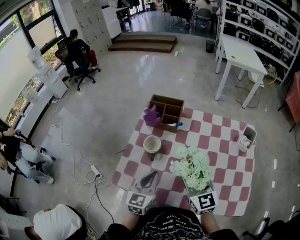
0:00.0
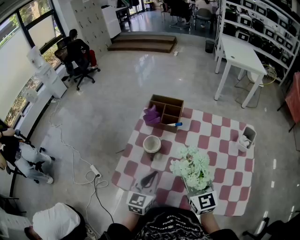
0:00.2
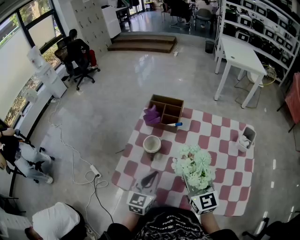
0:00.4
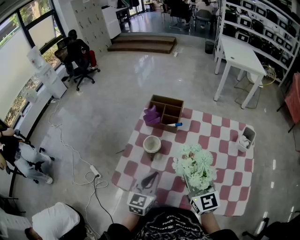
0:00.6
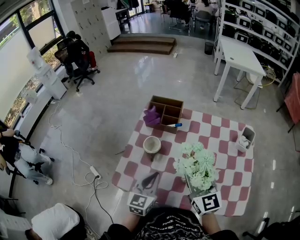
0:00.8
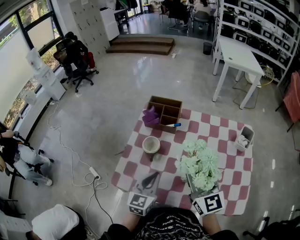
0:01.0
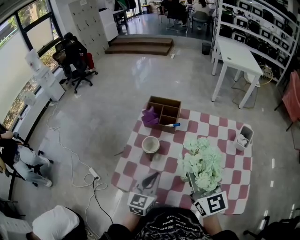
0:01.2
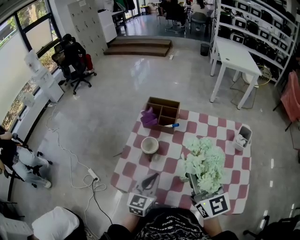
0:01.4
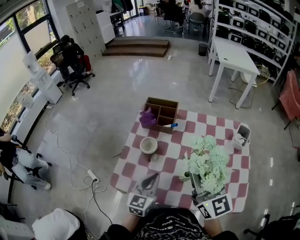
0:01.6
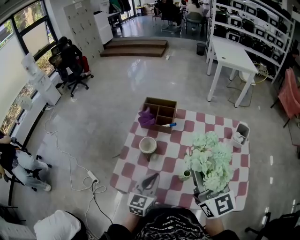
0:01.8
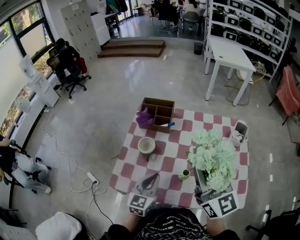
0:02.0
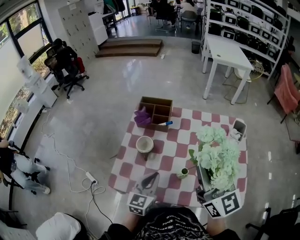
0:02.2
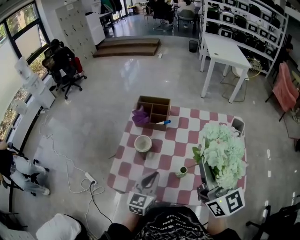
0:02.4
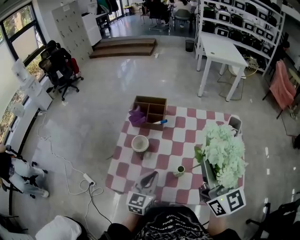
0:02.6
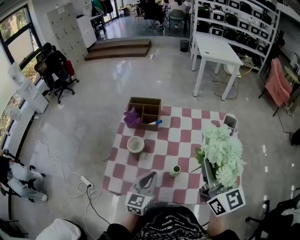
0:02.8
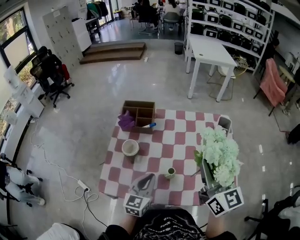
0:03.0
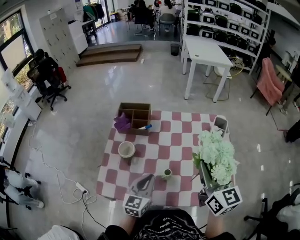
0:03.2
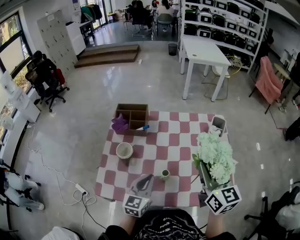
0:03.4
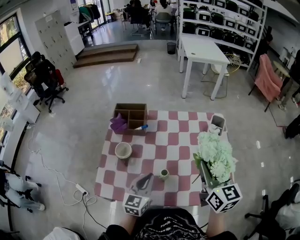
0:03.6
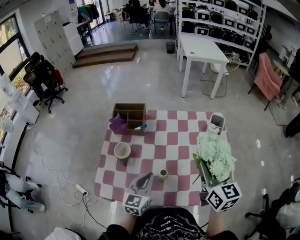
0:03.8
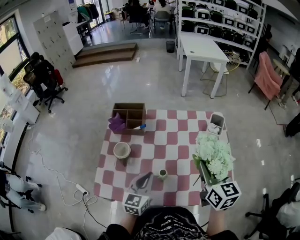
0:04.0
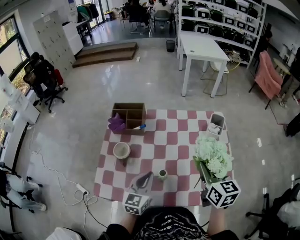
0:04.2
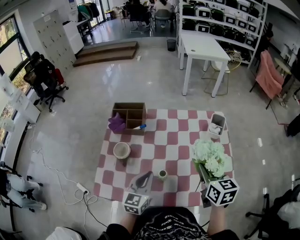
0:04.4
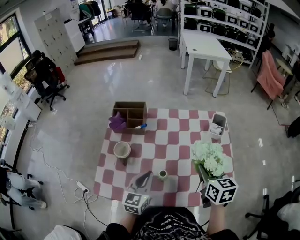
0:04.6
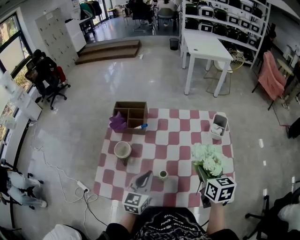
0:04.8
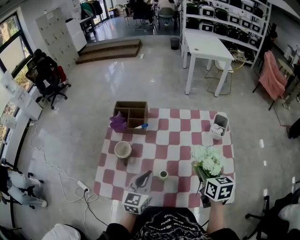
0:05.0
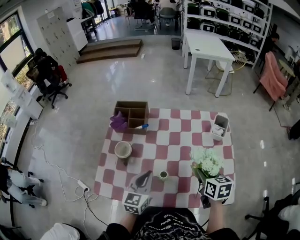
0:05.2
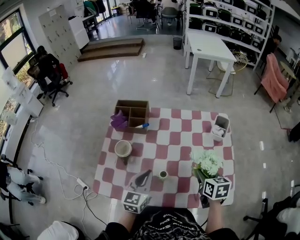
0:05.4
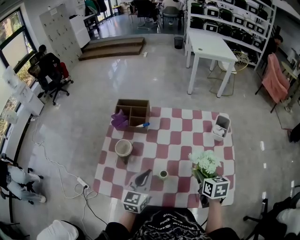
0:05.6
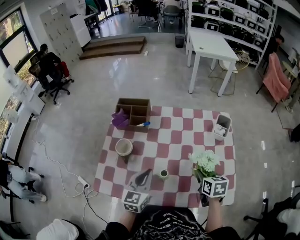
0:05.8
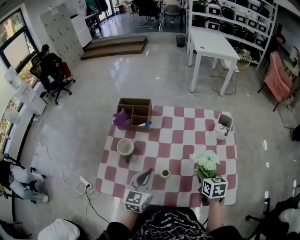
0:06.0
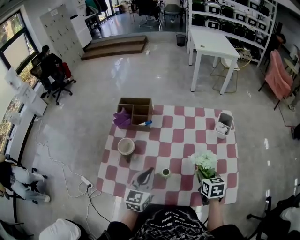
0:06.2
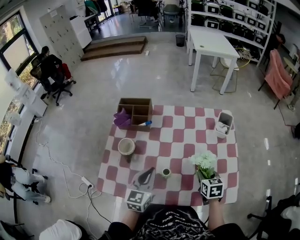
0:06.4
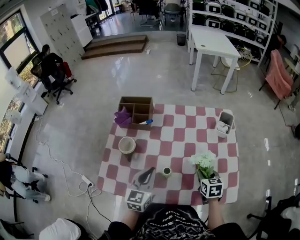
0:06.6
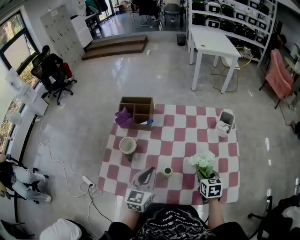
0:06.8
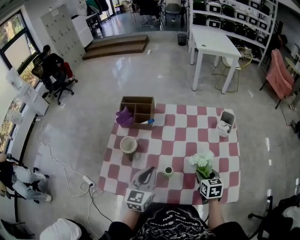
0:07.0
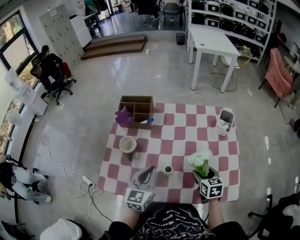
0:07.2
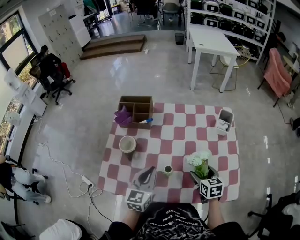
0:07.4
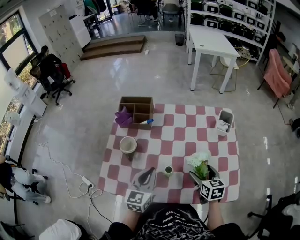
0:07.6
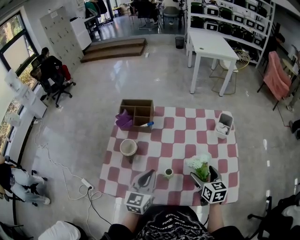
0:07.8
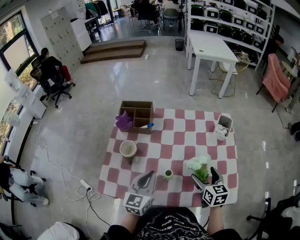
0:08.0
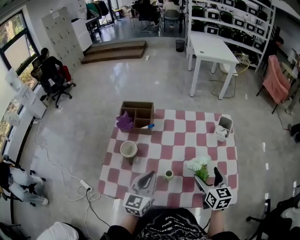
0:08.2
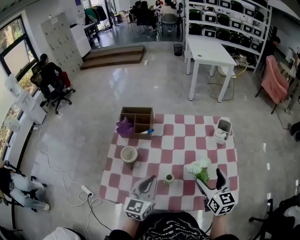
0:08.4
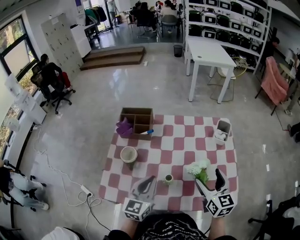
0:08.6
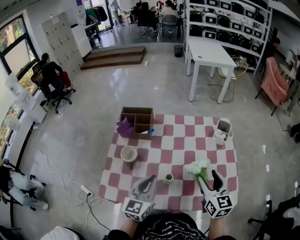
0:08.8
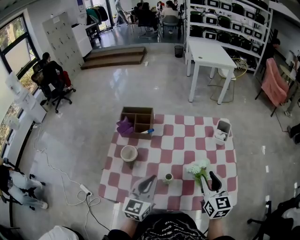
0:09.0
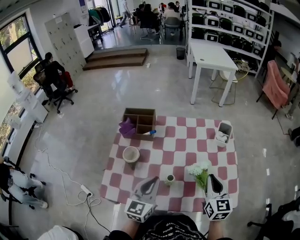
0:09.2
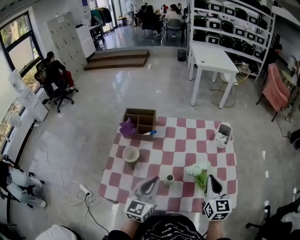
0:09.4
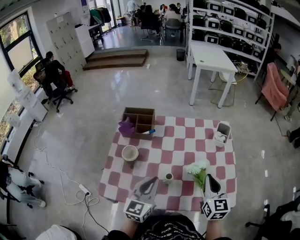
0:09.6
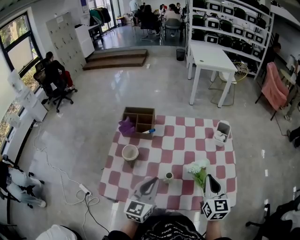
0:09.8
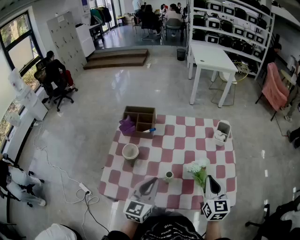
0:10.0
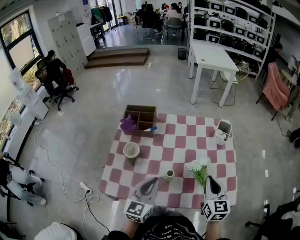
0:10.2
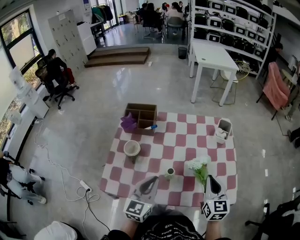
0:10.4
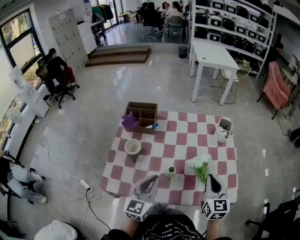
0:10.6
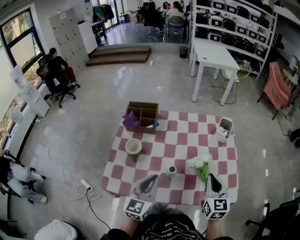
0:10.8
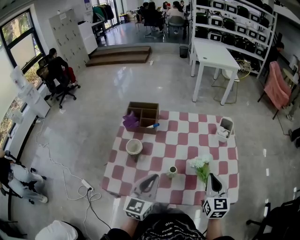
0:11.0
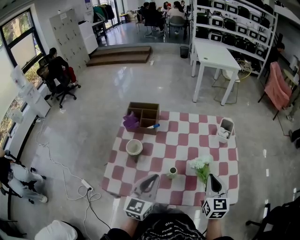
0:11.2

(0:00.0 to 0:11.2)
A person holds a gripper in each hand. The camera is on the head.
0:00.0 - 0:01.6: The right gripper shifts roughly 15 cm upward.
0:01.6 - 0:03.2: The left gripper travels to the right by approximately 5 cm. Meanwhile the right gripper heads to the right, covering some 10 cm, and swivels approximately 20 degrees.
0:03.2 - 0:04.8: The right gripper goes roughly 15 cm downward, and rotates some 30 degrees.
0:04.8 - 0:06.4: The right gripper heads downward, covering about 10 cm.
0:06.4 - 0:08.0: The right gripper heads upward, covering some 5 cm, and opens its fingers.
0:08.0 - 0:09.6: The right gripper travels upward by roughly 10 cm, and closes.
0:09.6 - 0:11.2: There are only small adjustments of the grippers.

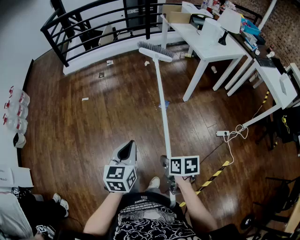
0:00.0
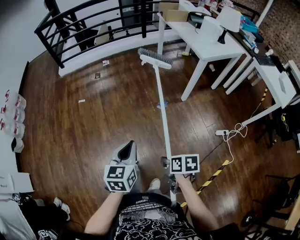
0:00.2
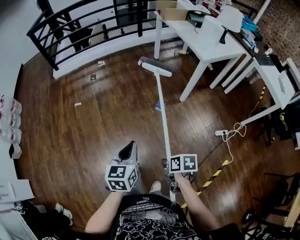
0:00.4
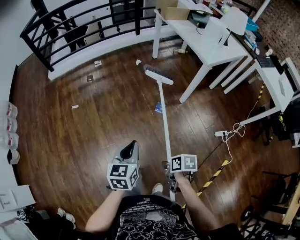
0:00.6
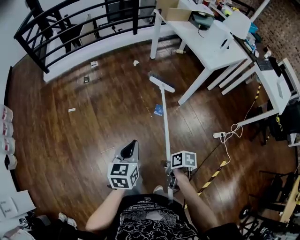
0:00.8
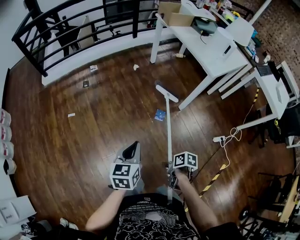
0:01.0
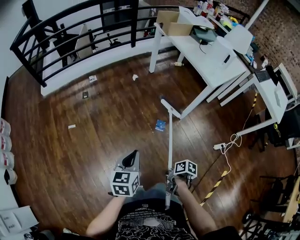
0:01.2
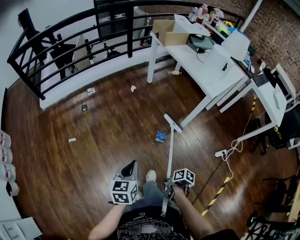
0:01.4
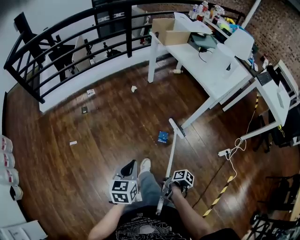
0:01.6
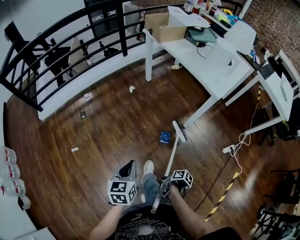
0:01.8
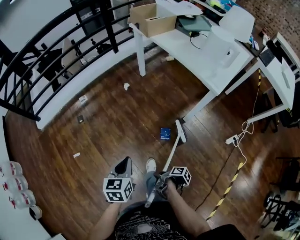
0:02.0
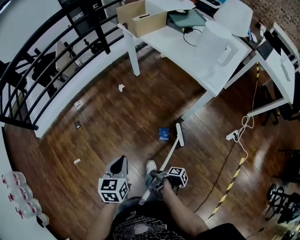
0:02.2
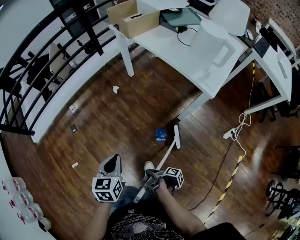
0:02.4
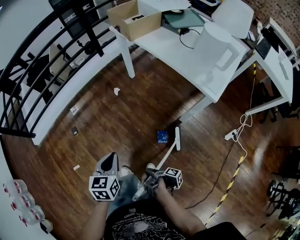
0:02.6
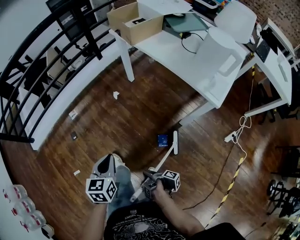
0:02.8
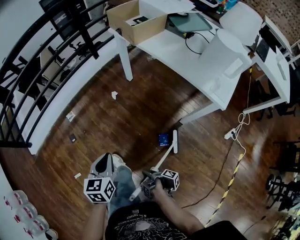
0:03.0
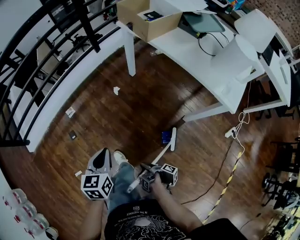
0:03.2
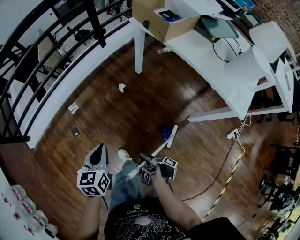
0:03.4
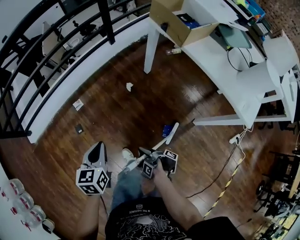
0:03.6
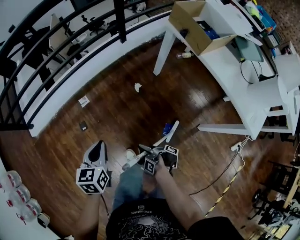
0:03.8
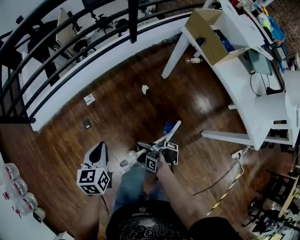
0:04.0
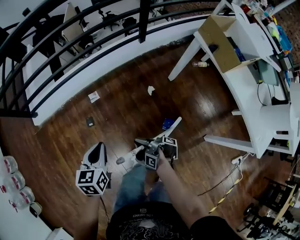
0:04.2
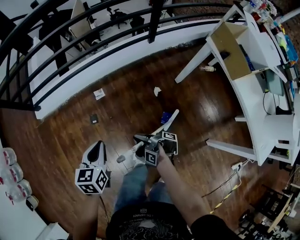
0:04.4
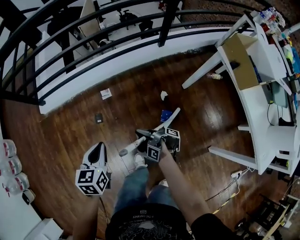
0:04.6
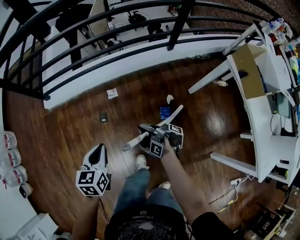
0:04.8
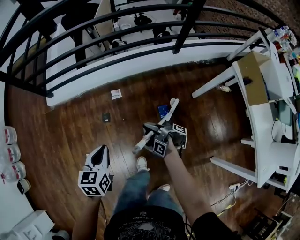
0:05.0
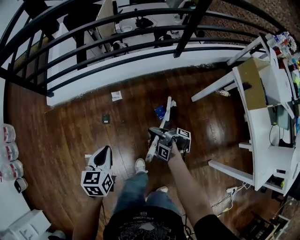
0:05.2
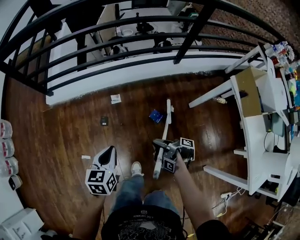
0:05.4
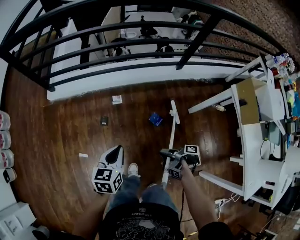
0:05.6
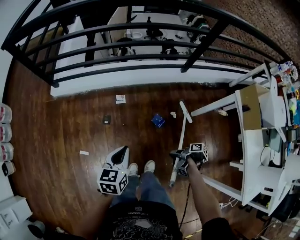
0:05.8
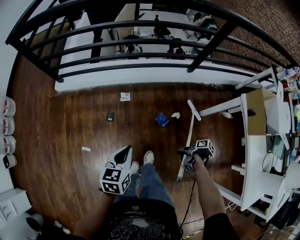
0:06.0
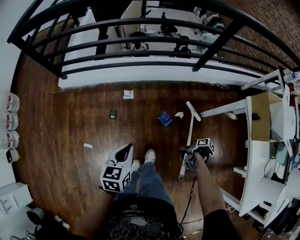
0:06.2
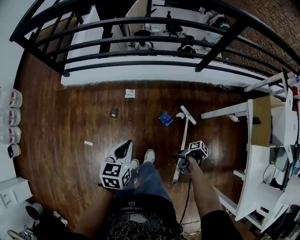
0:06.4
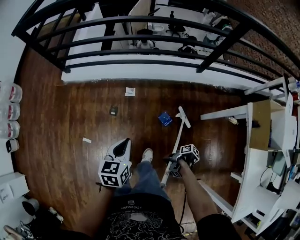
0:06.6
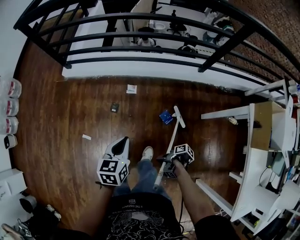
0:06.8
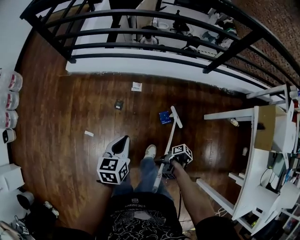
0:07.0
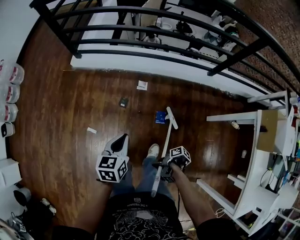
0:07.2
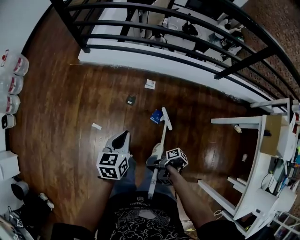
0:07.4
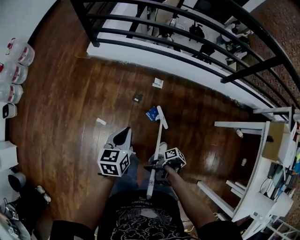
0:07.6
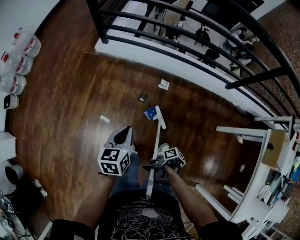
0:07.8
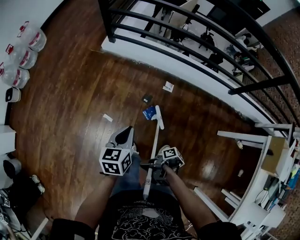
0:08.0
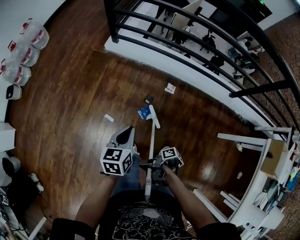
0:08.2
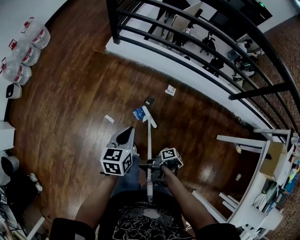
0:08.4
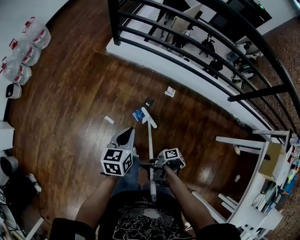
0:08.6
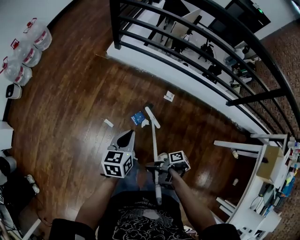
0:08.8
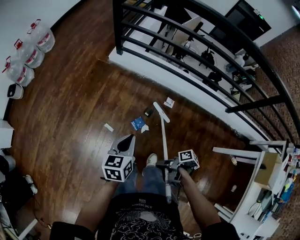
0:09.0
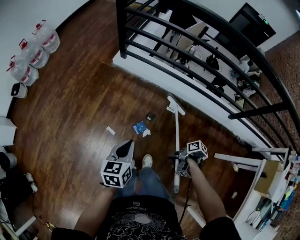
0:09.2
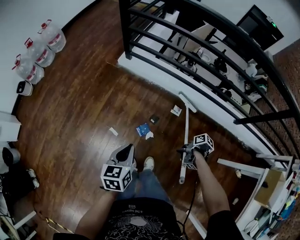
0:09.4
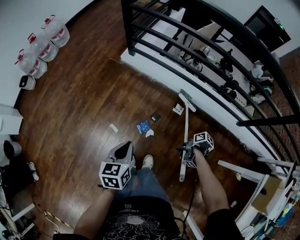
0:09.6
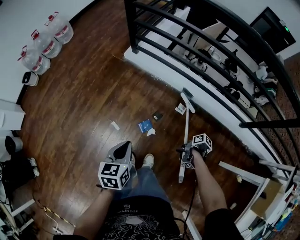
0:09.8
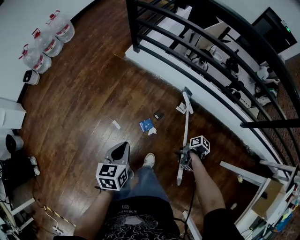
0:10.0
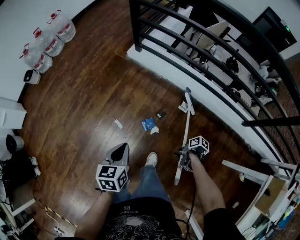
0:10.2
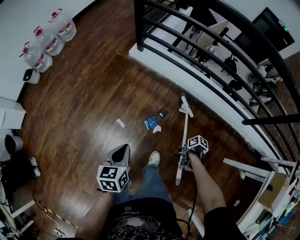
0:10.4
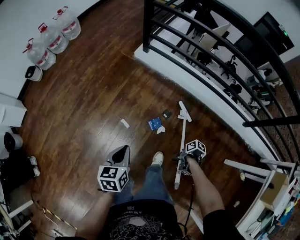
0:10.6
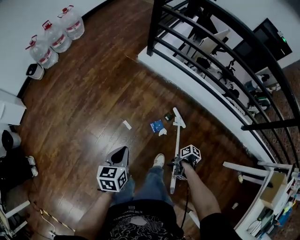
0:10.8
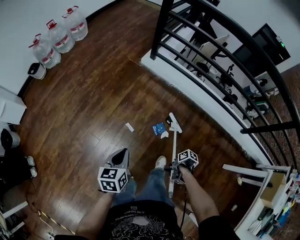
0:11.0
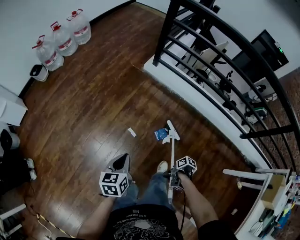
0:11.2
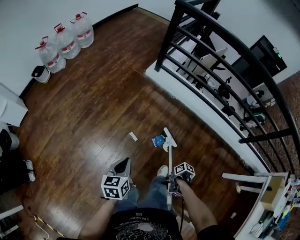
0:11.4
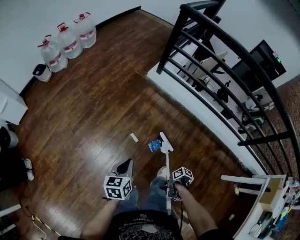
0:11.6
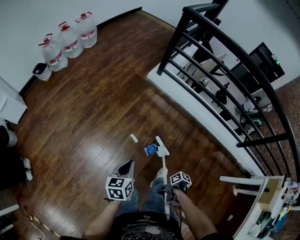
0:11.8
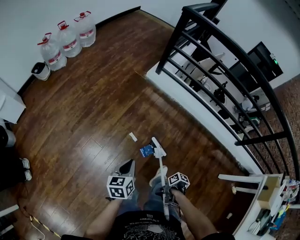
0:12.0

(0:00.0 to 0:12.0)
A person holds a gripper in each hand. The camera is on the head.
0:00.0 - 0:01.6: The left gripper shifts by approximately 40 cm.
0:01.6 - 0:03.0: The left gripper ends up approximately 35 cm from where it was.
0:03.0 - 0:04.4: The left gripper shifts by roughly 35 cm, and changes its angle by approximately 20 degrees.
0:06.0 - 0:07.6: The left gripper changes place by some 20 cm, and changes its angle by about 20 degrees.
0:07.6 - 0:09.0: The left gripper moves approximately 10 cm.
0:09.0 - 0:10.4: The left gripper ends up approximately 5 cm from where it was.
0:10.4 - 0:12.0: The left gripper ends up roughly 20 cm from where it was.

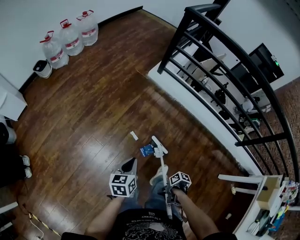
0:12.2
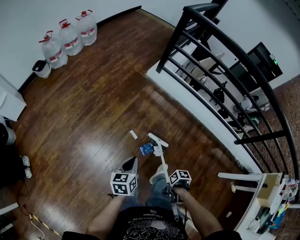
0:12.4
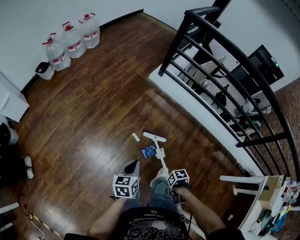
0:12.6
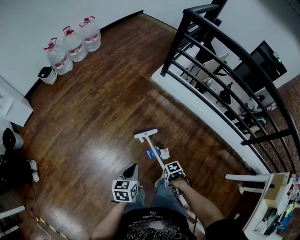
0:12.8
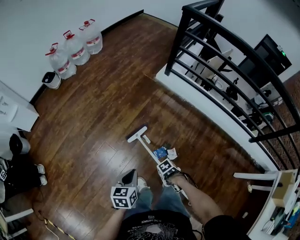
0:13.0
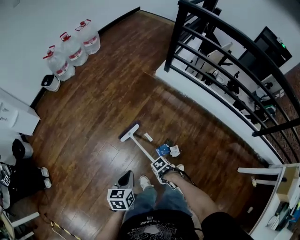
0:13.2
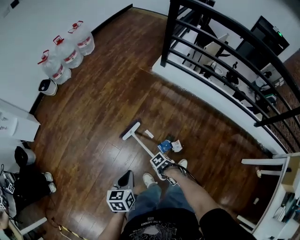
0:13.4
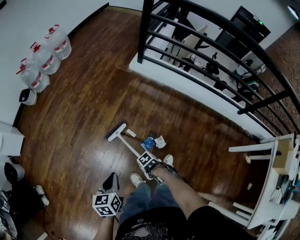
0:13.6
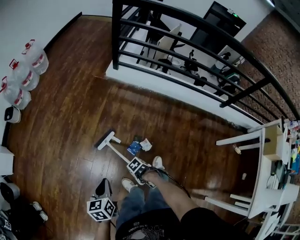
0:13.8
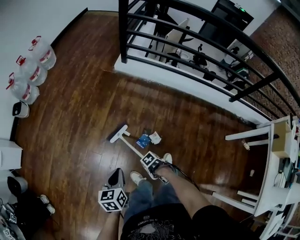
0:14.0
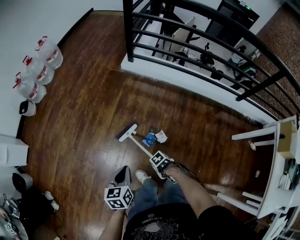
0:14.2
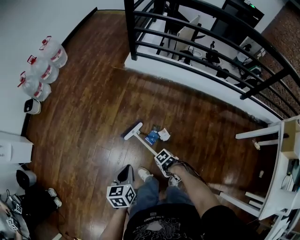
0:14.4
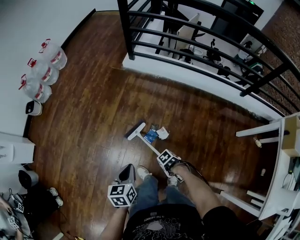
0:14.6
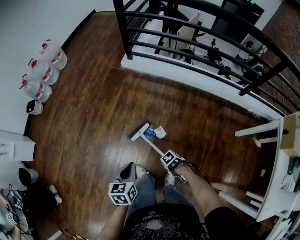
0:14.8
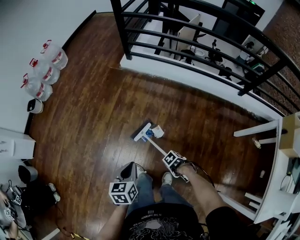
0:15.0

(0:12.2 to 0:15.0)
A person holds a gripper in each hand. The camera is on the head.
0:12.2 - 0:13.6: The left gripper changes place by about 10 cm.
0:13.6 - 0:15.0: The left gripper shifts by approximately 20 cm.
